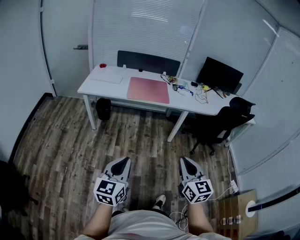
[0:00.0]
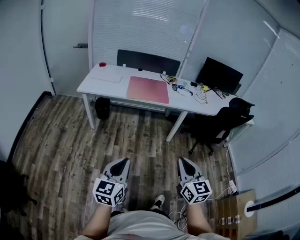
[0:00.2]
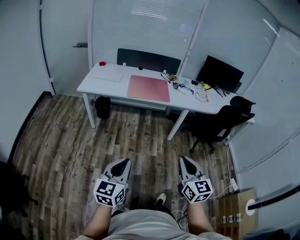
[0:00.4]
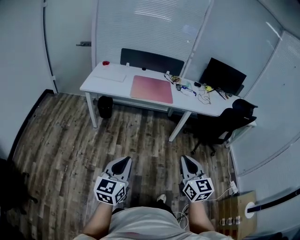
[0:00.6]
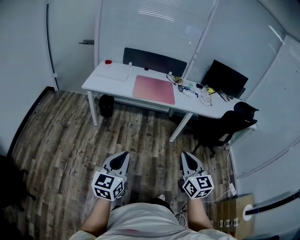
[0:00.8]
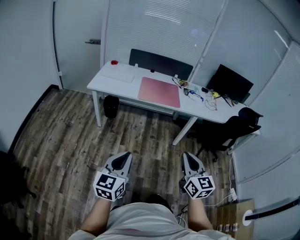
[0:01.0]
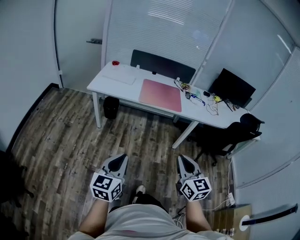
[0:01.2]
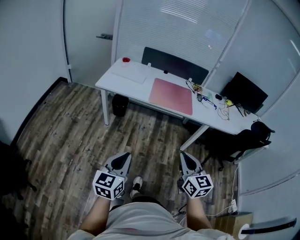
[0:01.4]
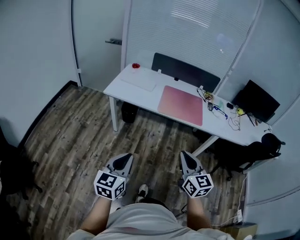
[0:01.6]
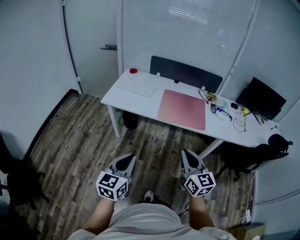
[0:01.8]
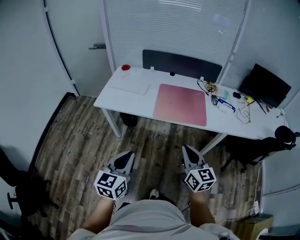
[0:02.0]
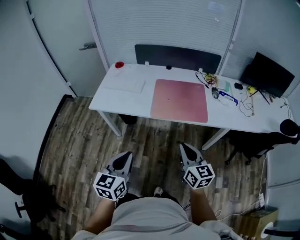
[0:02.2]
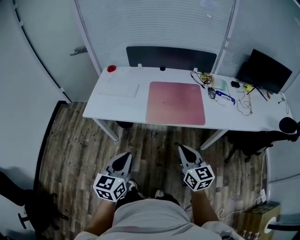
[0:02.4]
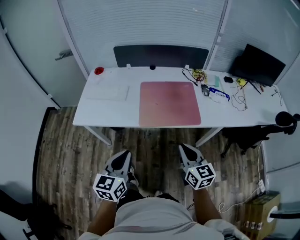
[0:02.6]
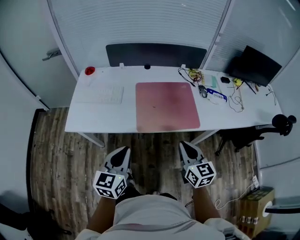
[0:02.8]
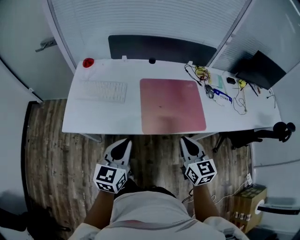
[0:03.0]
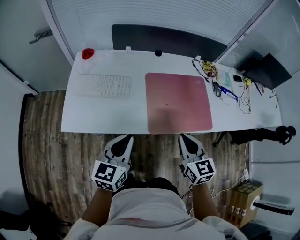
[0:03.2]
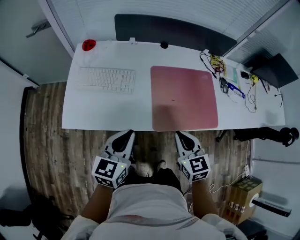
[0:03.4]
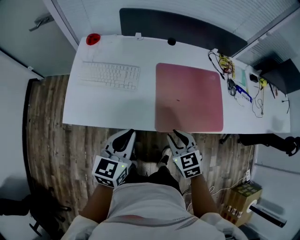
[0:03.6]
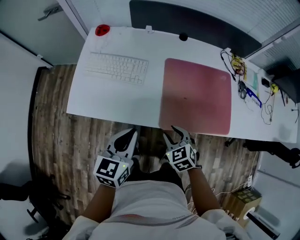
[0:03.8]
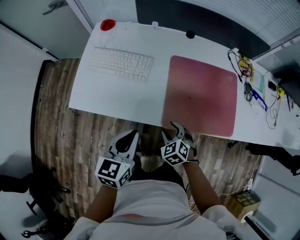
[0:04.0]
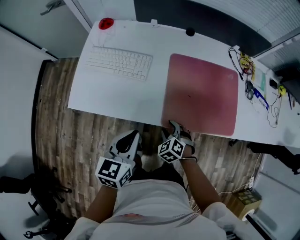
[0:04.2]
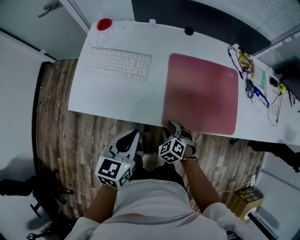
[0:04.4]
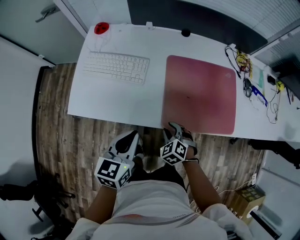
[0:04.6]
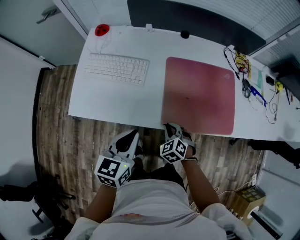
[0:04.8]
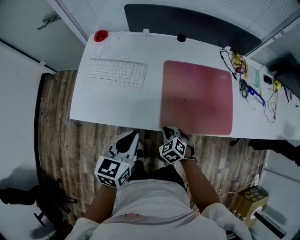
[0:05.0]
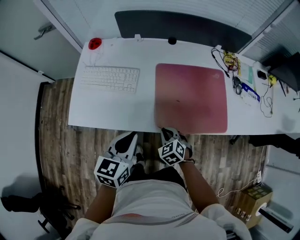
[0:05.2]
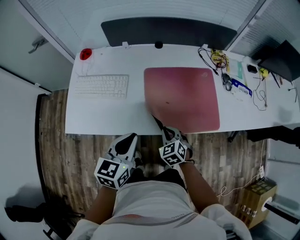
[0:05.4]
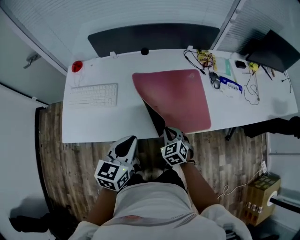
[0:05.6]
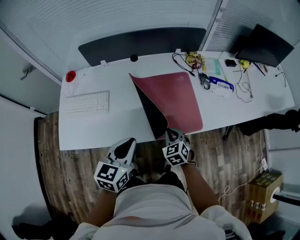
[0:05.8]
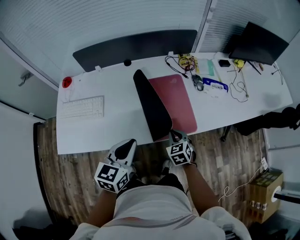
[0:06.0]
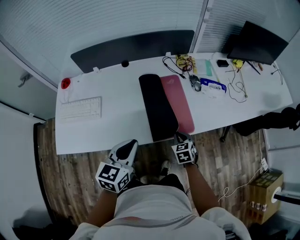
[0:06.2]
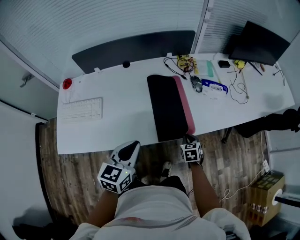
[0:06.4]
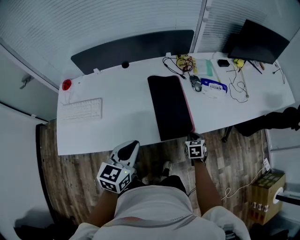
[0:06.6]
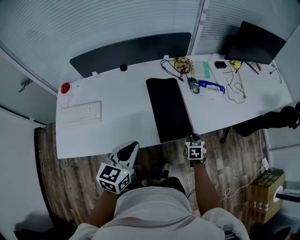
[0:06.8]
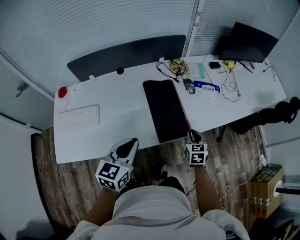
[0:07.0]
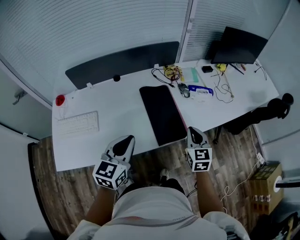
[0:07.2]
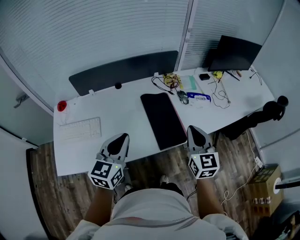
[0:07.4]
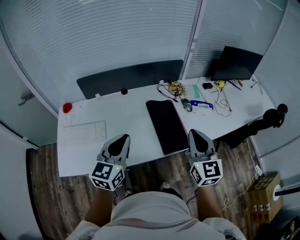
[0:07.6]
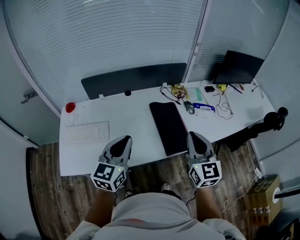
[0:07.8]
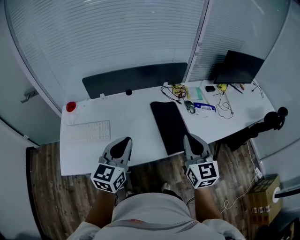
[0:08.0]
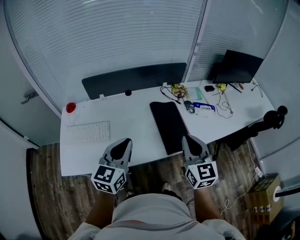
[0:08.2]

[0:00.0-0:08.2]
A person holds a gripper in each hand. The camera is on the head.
0:00.0 to 0:01.6: The grippers both shift forward and to the left by some 25 cm.
0:01.6 to 0:03.2: The two grippers travel together, forward, about 50 cm. The left gripper changes its angle by roughly 20 degrees. Meanwhile the right gripper changes its angle by some 20 degrees.
0:03.2 to 0:05.0: The right gripper travels downward by some 25 cm, tilts its fingers roughly 30 degrees downward, and opens, then closes once more, while the left gripper goes about 5 cm downward.
0:05.0 to 0:06.6: The right gripper travels upward and back again, approximately 10 cm each way, and rotates around the line of its fingers by some 50 degrees, clockwise from behind. The left gripper moves approximately 25 cm.
0:06.6 to 0:08.2: The right gripper moves upward and to the left, approximately 40 cm, and points its fingers roughly 50 degrees further upward. Meanwhile the left gripper shifts roughly 15 cm upward and to the left.

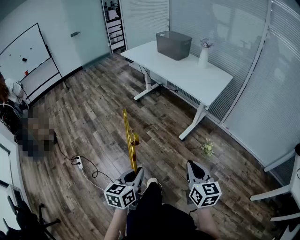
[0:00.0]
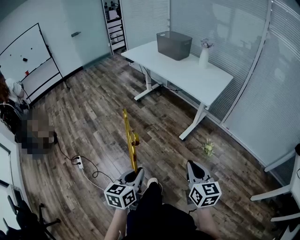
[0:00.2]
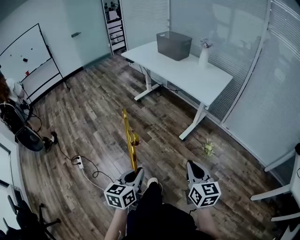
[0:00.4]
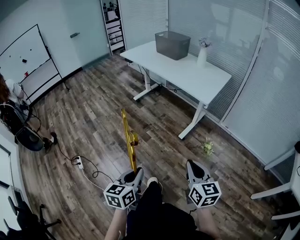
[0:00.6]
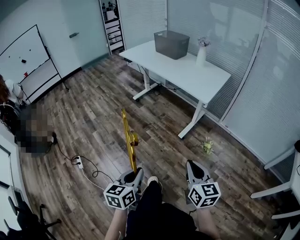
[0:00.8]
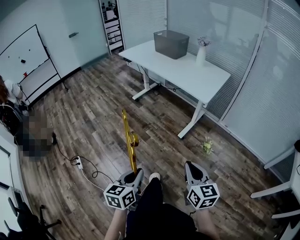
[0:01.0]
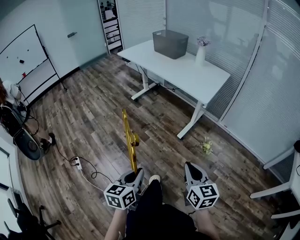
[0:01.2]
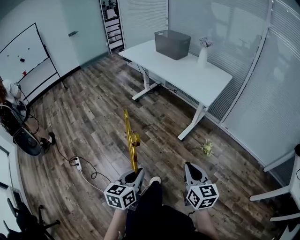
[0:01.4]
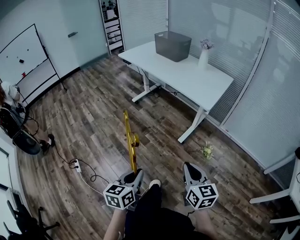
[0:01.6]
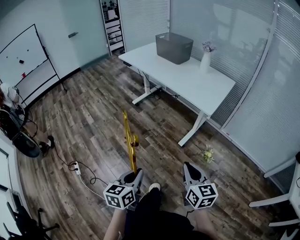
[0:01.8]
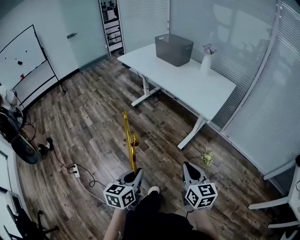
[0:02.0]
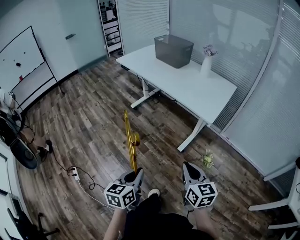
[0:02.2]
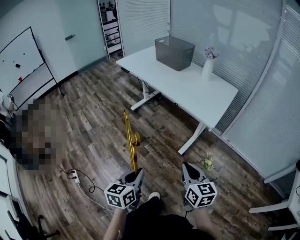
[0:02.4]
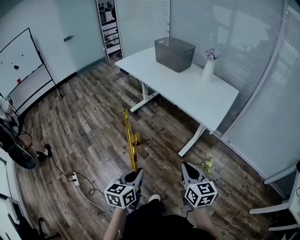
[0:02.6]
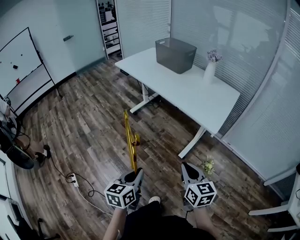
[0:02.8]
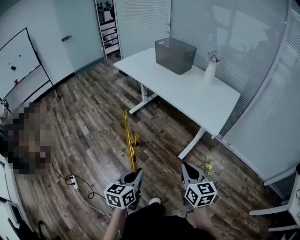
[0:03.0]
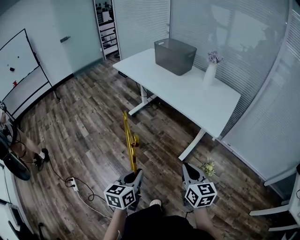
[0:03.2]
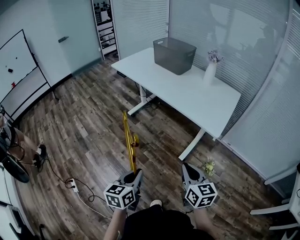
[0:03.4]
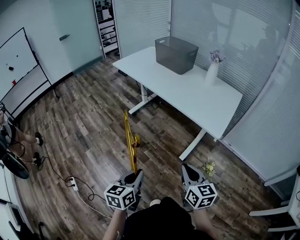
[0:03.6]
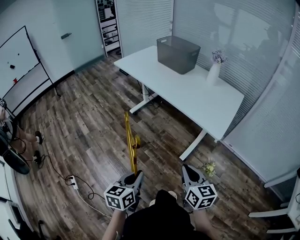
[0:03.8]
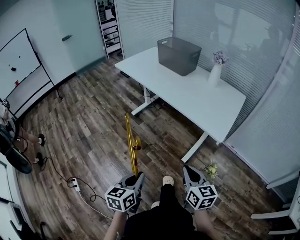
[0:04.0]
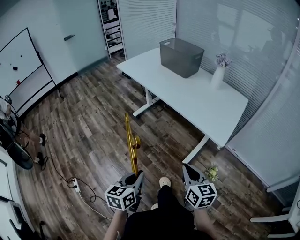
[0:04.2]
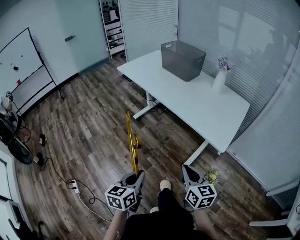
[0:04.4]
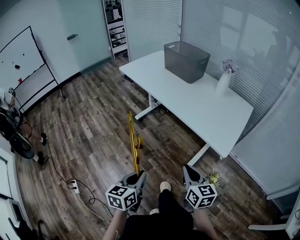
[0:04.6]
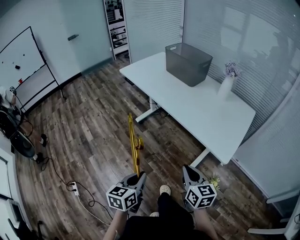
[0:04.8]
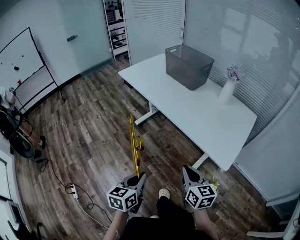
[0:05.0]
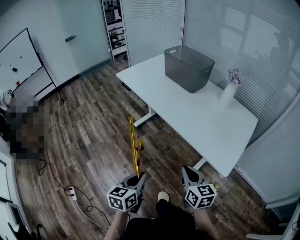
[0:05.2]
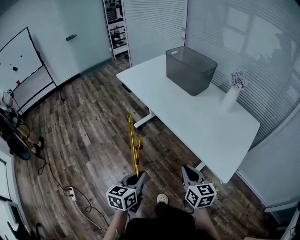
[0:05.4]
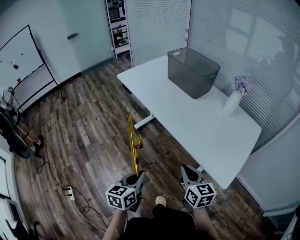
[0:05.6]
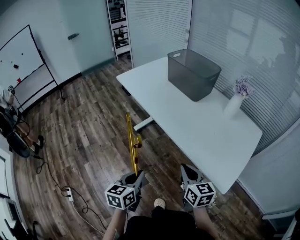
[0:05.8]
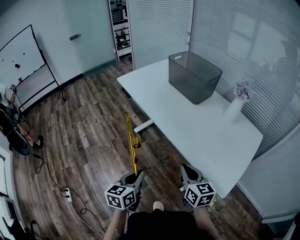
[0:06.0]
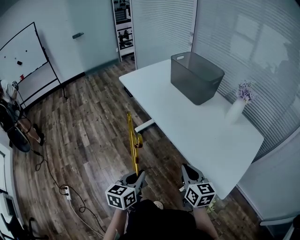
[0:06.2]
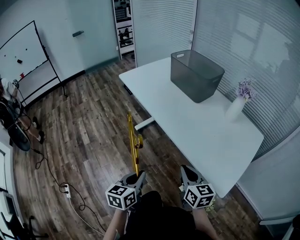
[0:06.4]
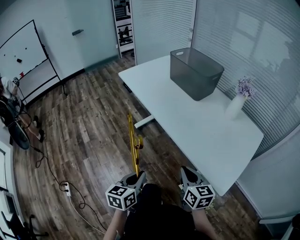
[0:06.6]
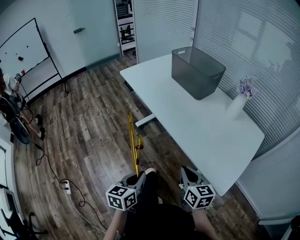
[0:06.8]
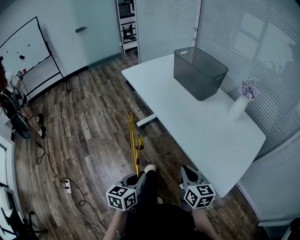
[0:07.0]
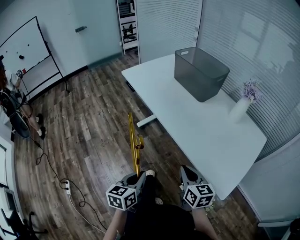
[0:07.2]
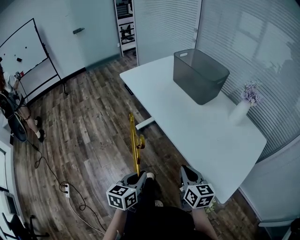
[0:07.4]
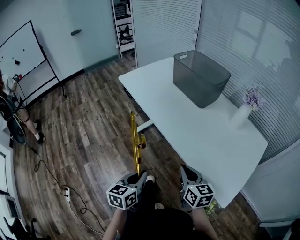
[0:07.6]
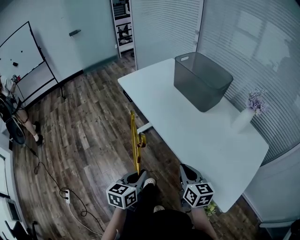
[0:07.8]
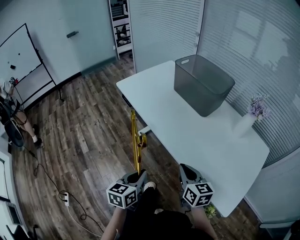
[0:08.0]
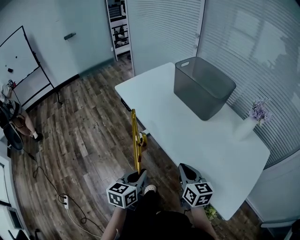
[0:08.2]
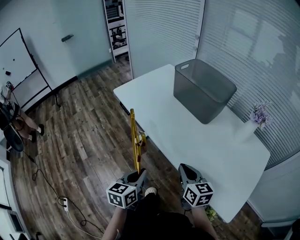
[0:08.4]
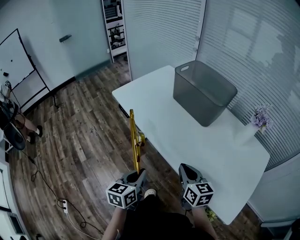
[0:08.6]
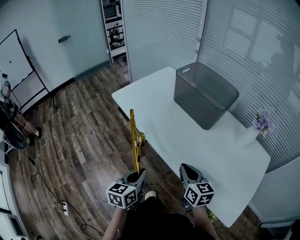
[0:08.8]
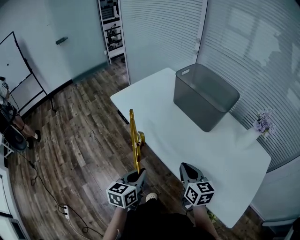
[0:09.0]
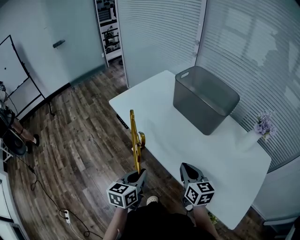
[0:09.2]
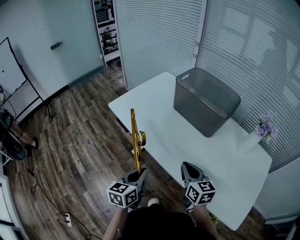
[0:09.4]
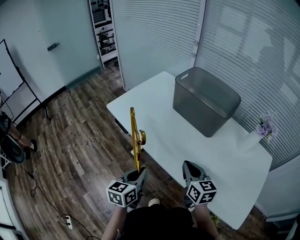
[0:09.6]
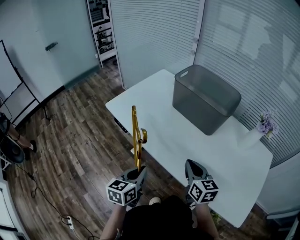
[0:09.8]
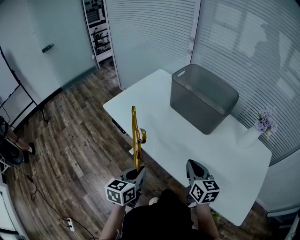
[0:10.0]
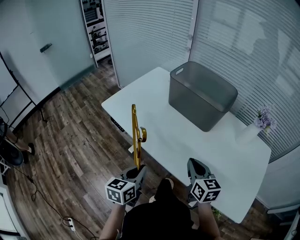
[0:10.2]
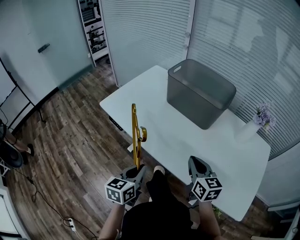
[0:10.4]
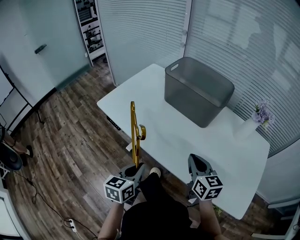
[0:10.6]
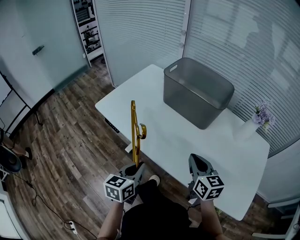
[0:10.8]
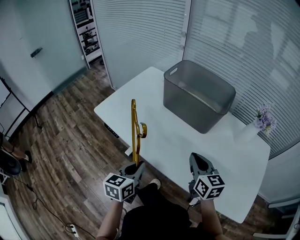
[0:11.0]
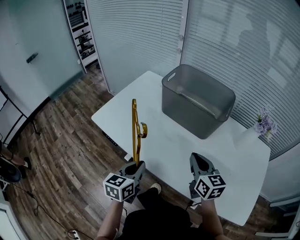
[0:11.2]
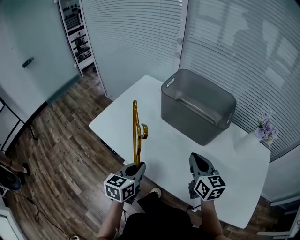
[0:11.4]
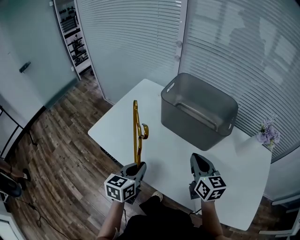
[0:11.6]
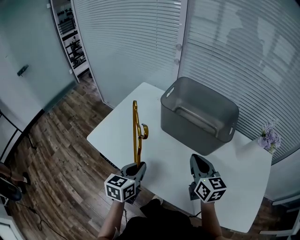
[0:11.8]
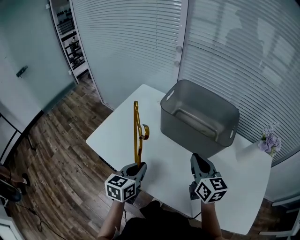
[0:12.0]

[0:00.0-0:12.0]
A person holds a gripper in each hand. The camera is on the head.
0:00.0 to 0:01.6: The grippers stay close to where they were, moving slightly.
0:01.6 to 0:03.0: The two grippers go roughly 20 cm forward.
0:03.0 to 0:04.4: Both grippers move forward, about 10 cm.
0:04.4 to 0:06.0: The grippers both shift forward by some 25 cm.
0:06.0 to 0:07.6: Both grippers travel together forward, approximately 5 cm.
0:07.6 to 0:09.0: Both grippers travel together forward, about 20 cm.
0:09.0 to 0:10.4: The left gripper travels forward by roughly 5 cm. The right gripper ends up about 5 cm from where it was.
0:10.4 to 0:12.0: Both grippers move forward, some 20 cm.

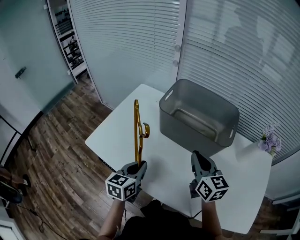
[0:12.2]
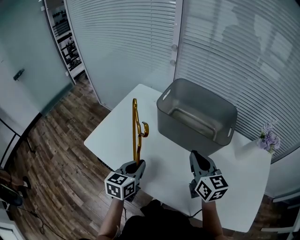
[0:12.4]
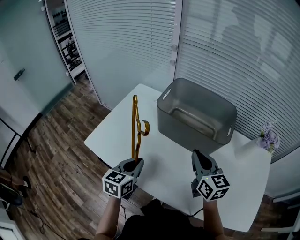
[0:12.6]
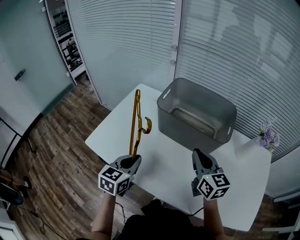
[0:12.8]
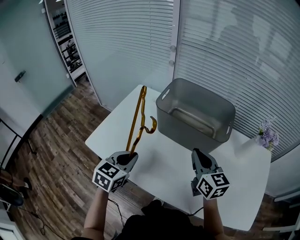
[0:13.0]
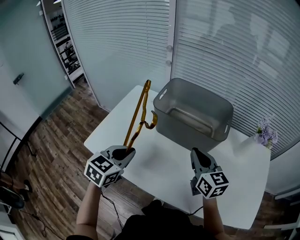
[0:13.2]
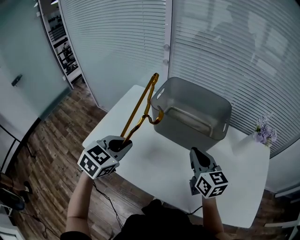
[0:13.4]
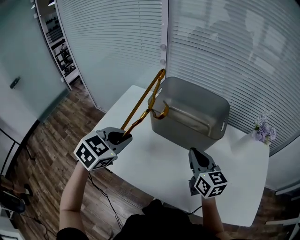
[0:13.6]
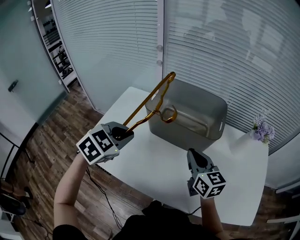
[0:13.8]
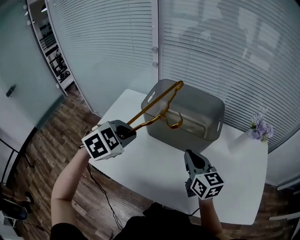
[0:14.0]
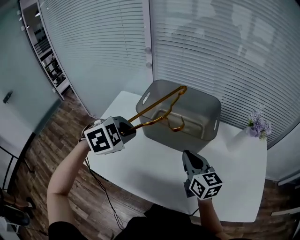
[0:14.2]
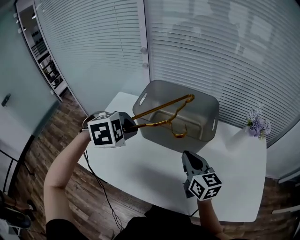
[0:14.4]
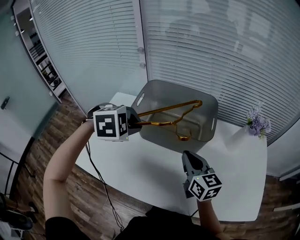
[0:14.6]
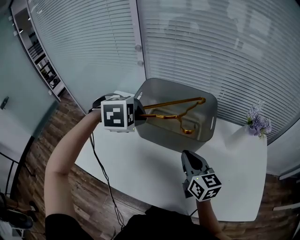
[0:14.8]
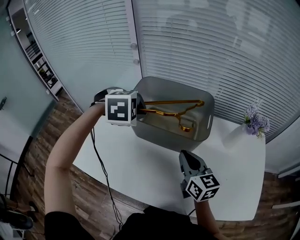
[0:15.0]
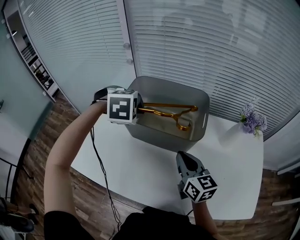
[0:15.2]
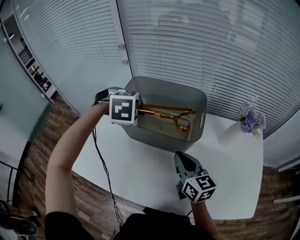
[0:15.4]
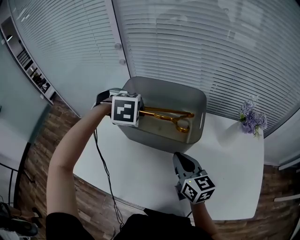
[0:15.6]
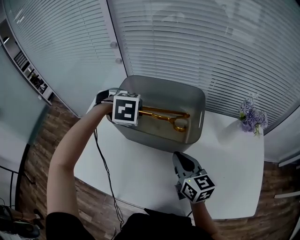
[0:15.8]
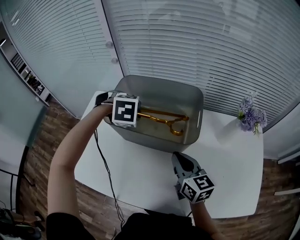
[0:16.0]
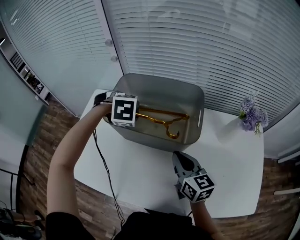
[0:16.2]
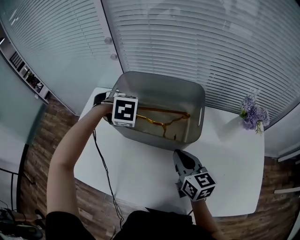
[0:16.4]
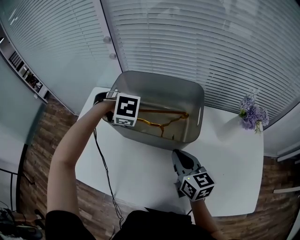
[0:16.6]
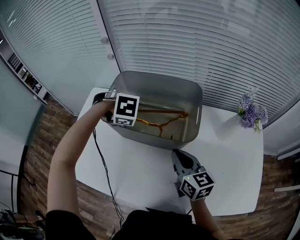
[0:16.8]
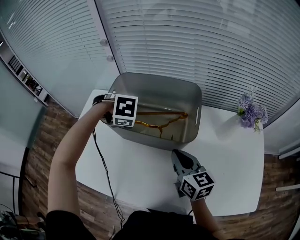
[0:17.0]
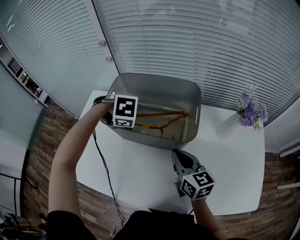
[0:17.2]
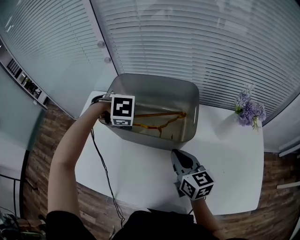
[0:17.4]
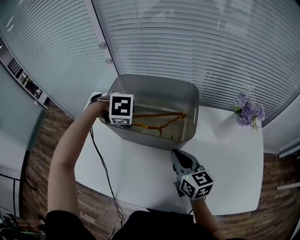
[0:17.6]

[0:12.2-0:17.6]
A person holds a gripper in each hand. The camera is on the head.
0:12.2 to 0:13.6: The left gripper travels upward by about 15 cm, and rolls clockwise, seen from behind, by roughly 40 degrees.
0:13.6 to 0:15.0: The left gripper shifts about 20 cm forward and to the right, and rotates around the line of its fingers by approximately 40 degrees, clockwise from behind.
0:15.0 to 0:16.2: The left gripper is displaced downward by roughly 10 cm.
0:16.2 to 0:17.6: The left gripper opens its fingers.
